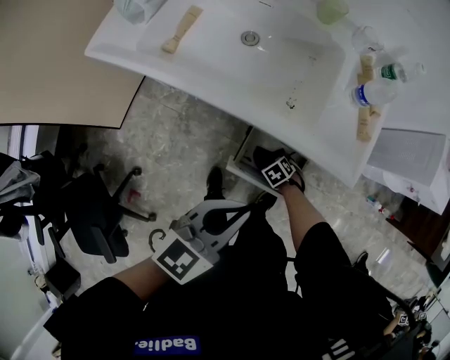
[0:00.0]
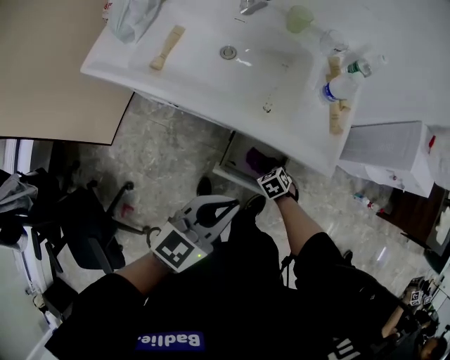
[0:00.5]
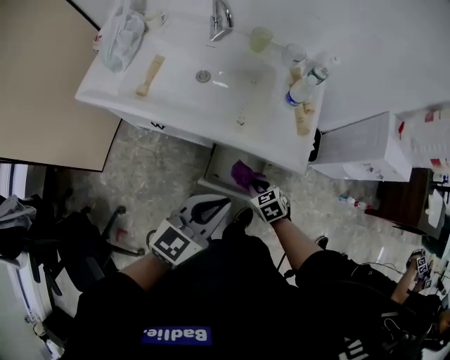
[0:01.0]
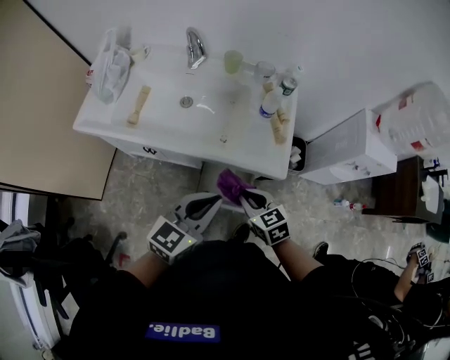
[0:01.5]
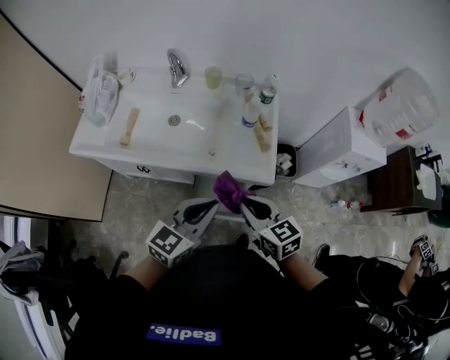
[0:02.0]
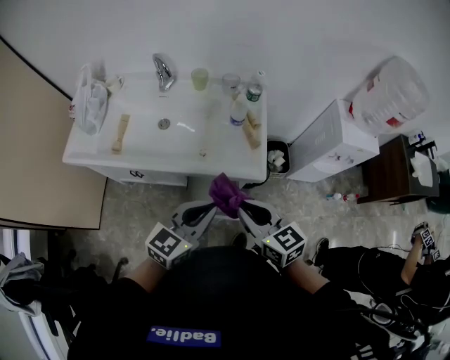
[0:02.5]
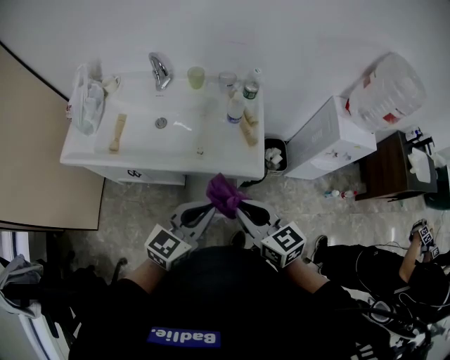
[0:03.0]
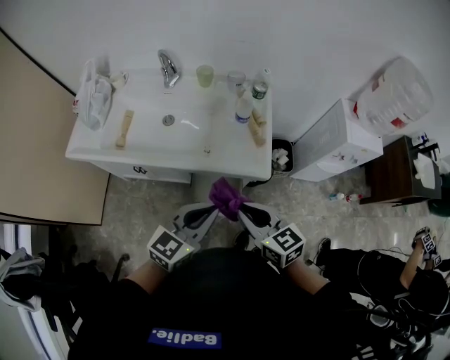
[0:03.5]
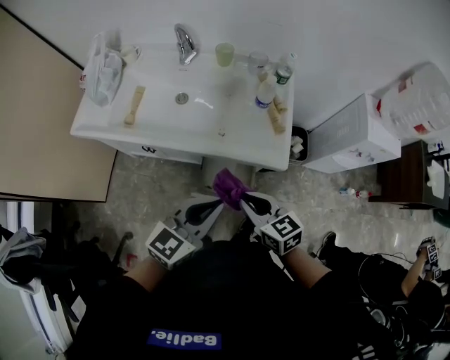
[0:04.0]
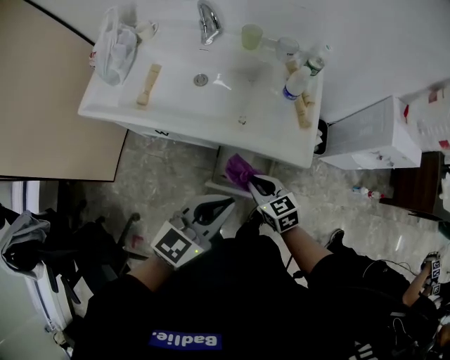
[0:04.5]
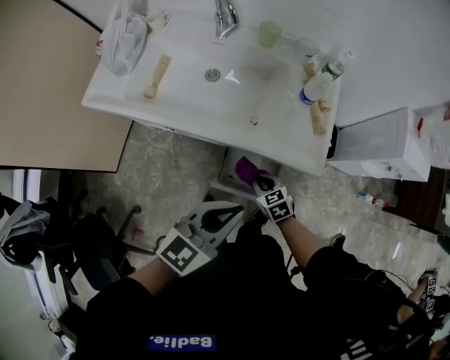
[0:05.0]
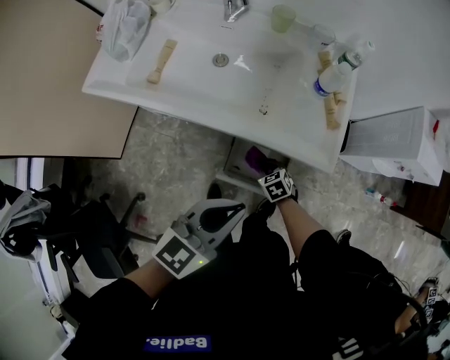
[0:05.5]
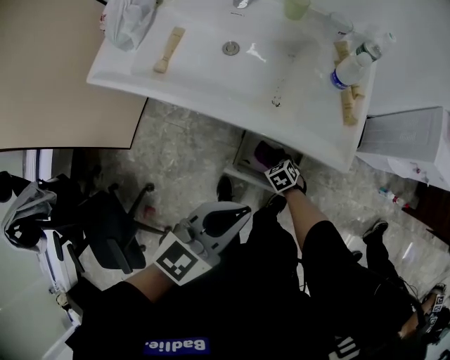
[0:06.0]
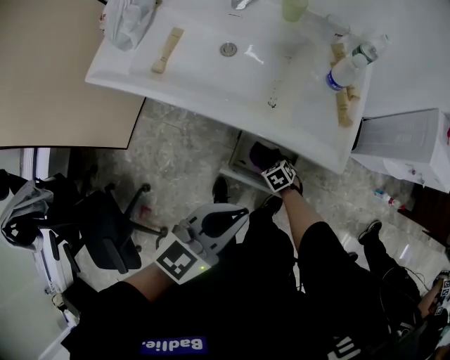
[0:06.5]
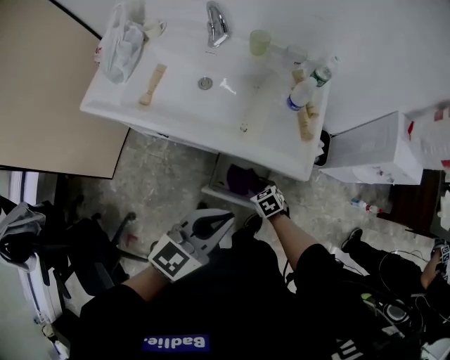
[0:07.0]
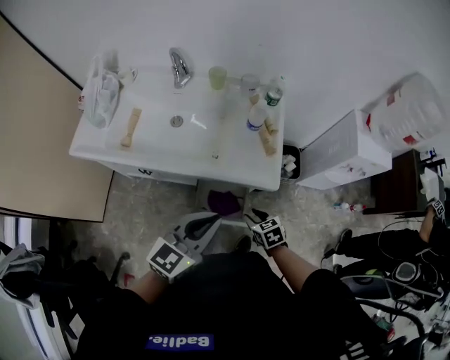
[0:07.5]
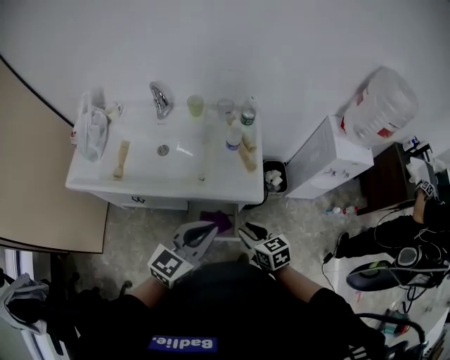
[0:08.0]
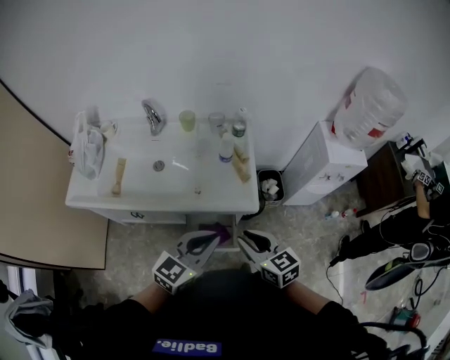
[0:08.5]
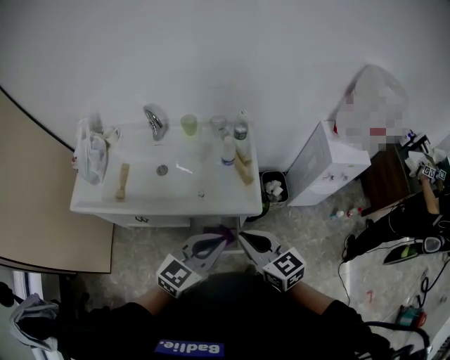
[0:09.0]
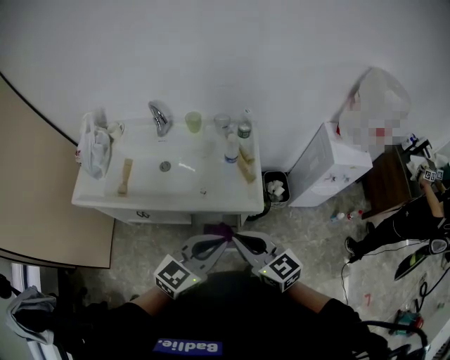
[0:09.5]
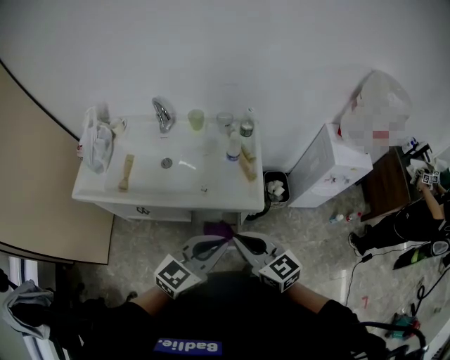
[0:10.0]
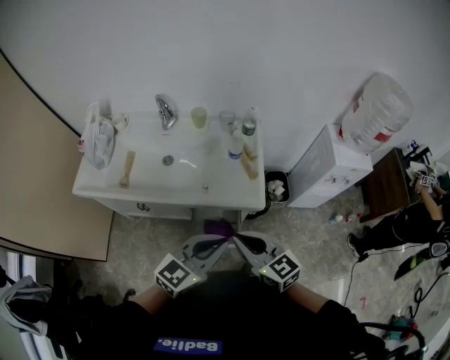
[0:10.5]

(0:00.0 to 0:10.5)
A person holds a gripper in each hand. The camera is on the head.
0:00.0 - 0:02.0: The left gripper shifts about 10 cm upward. Meanwhile the right gripper shifts approximately 50 cm upward, tips its fingers upward by approximately 60 degrees, and closes up.
0:02.0 - 0:04.0: The right gripper shifts approximately 5 cm downward.
0:04.0 - 0:06.5: The left gripper goes roughly 5 cm downward, while the right gripper is displaced downward by approximately 40 cm, and tilts its fingers roughly 40 degrees downward.
0:06.5 - 0:08.5: The right gripper is displaced upward by some 50 cm, and angles its fingers upward, by about 40 degrees; the left gripper goes roughly 15 cm upward and to the right.
0:08.5 - 0:10.5: The right gripper travels upward by about 5 cm, and closes.

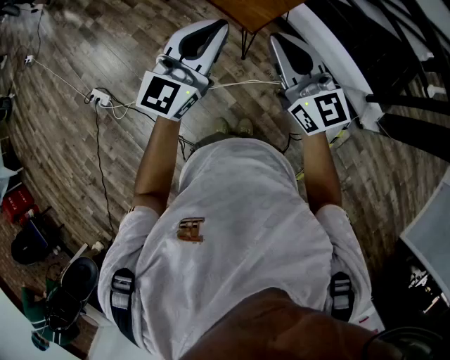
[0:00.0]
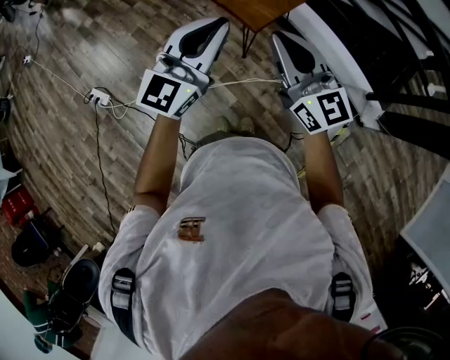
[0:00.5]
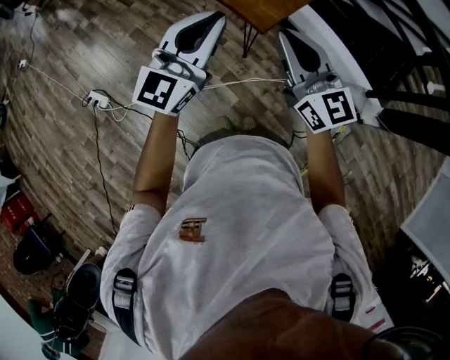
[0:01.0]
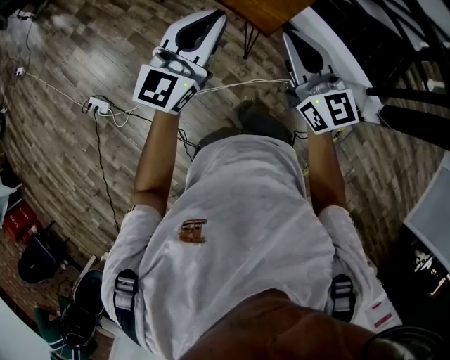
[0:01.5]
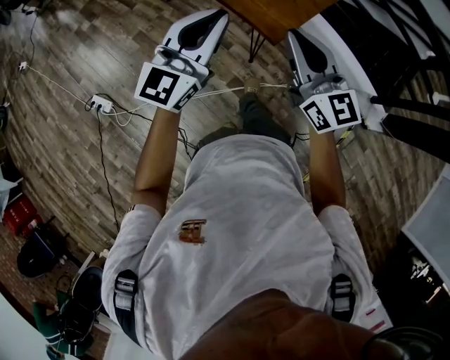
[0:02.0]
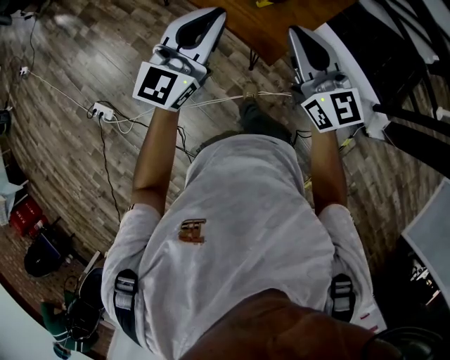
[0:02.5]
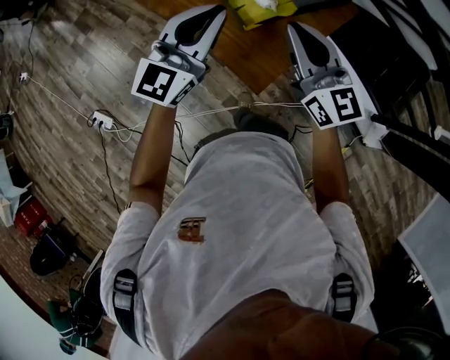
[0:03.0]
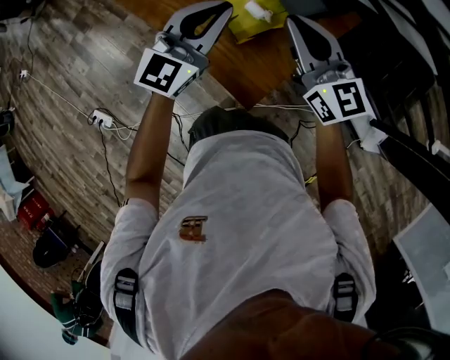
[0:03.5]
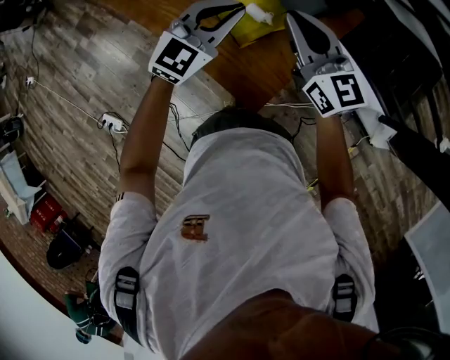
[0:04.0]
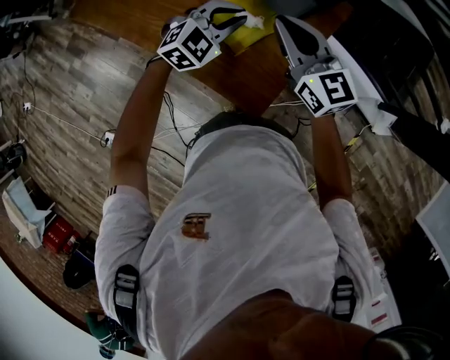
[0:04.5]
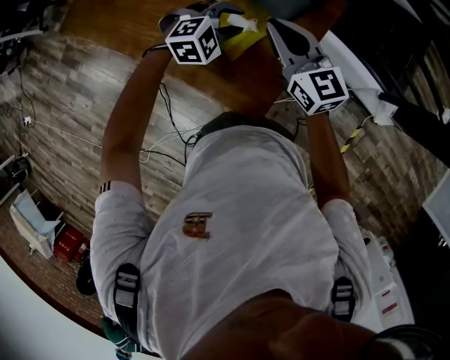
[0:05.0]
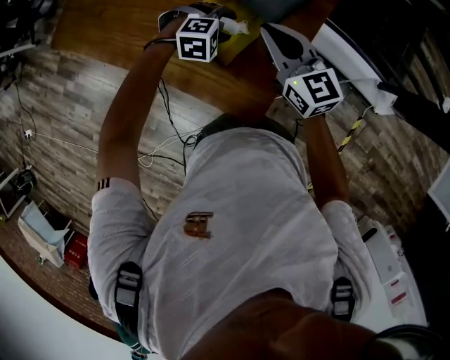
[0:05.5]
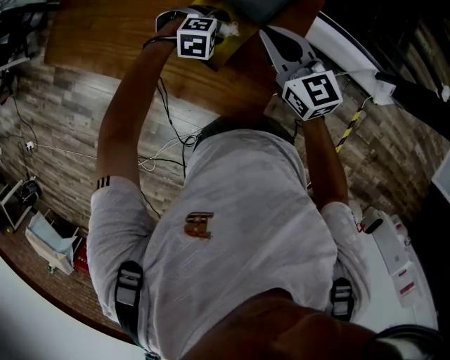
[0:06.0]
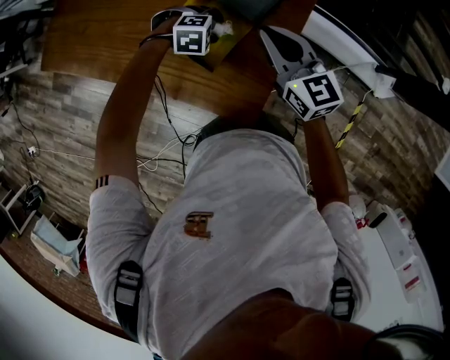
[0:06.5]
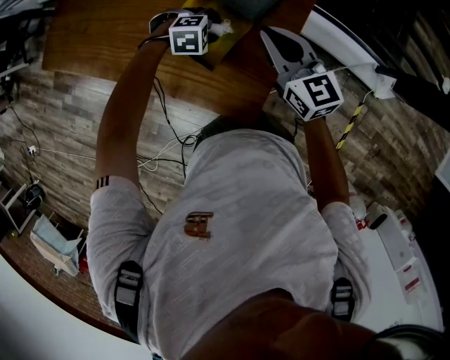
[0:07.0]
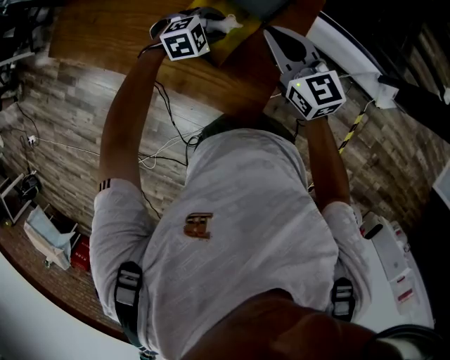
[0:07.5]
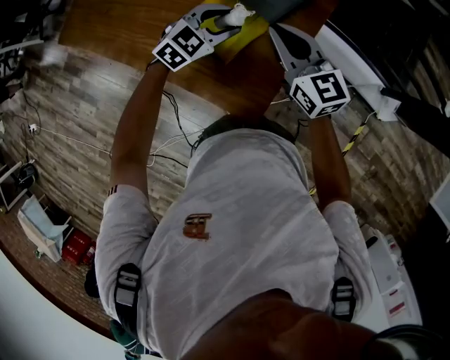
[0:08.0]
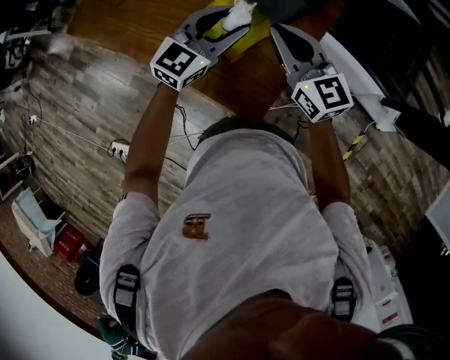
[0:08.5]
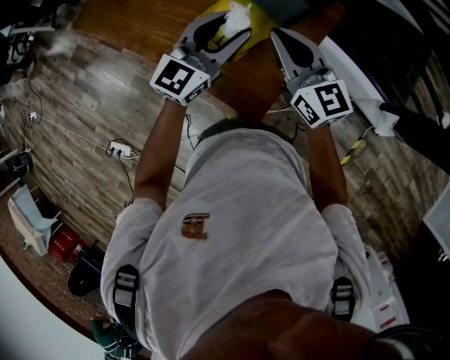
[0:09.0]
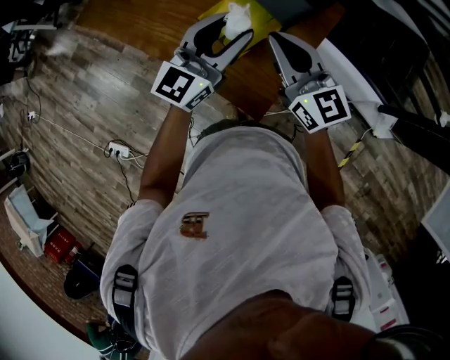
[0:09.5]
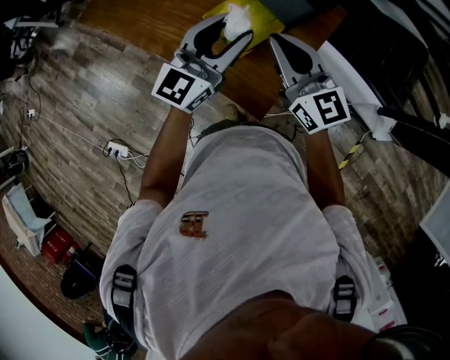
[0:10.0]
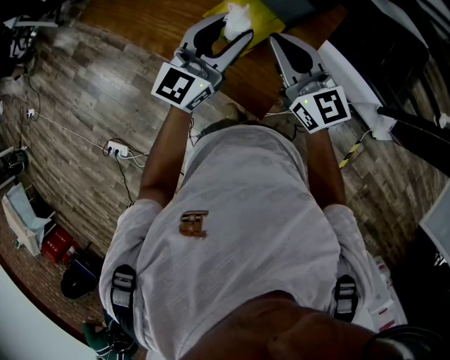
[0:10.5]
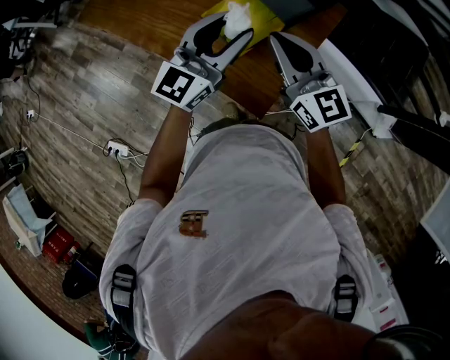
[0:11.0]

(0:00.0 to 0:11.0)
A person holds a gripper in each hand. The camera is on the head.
0:00.0 - 0:02.0: Both grippers travel together to the left and forward, roughly 15 cm.
0:02.0 - 0:03.5: The pair of grippers is taken forward, about 40 cm.
0:03.5 - 0:05.5: The right gripper moves some 15 cm. The left gripper heads downward, covering roughly 25 cm, points its fingers approximately 70 degrees further downward, and opens up.
0:05.5 - 0:07.5: There are only small adjustments of the grippers.
0:07.5 - 0:09.0: The right gripper shifts some 10 cm upward and backward; the left gripper moves upward, roughly 25 cm, and tips its fingers upward by roughly 60 degrees.
0:09.0 - 0:11.0: The left gripper ends up approximately 5 cm from where it was, while the right gripper goes approximately 5 cm backward.

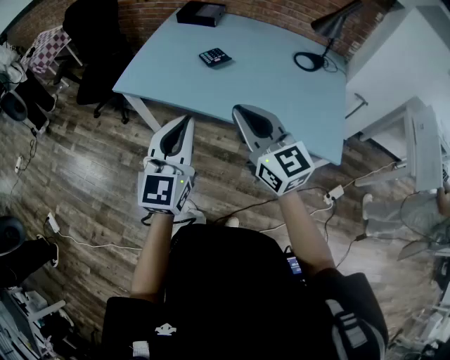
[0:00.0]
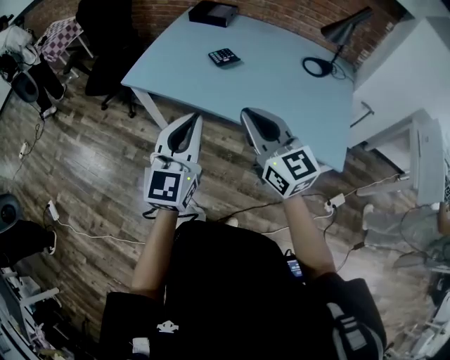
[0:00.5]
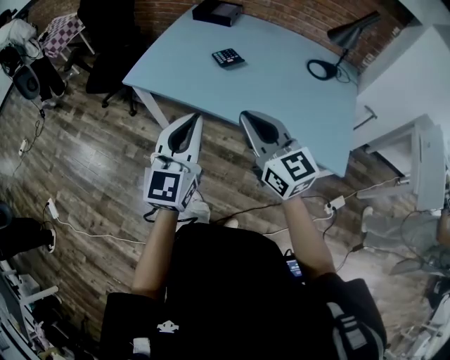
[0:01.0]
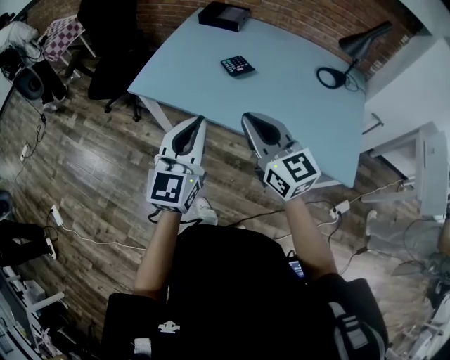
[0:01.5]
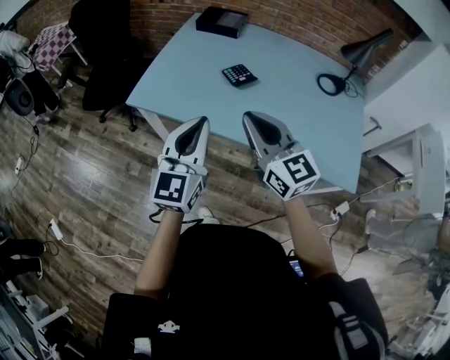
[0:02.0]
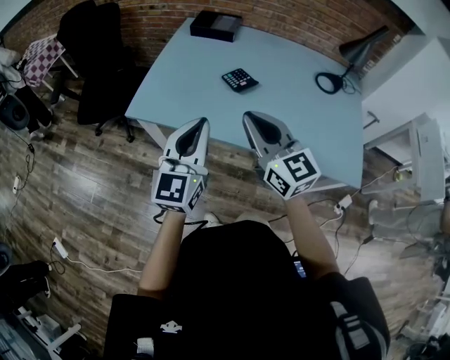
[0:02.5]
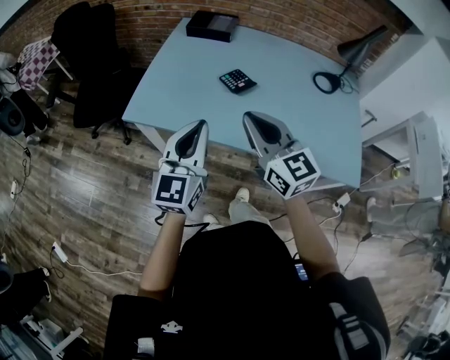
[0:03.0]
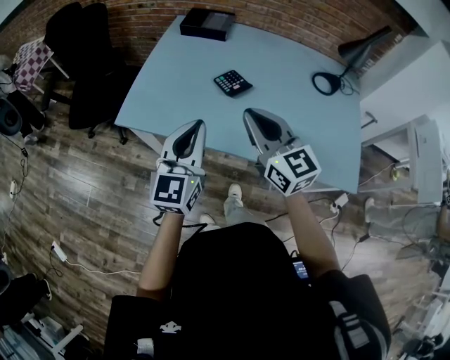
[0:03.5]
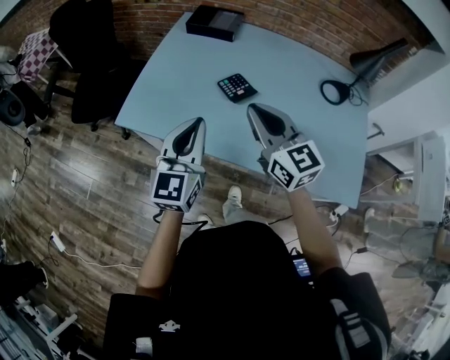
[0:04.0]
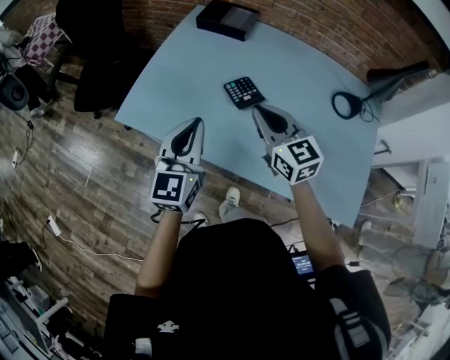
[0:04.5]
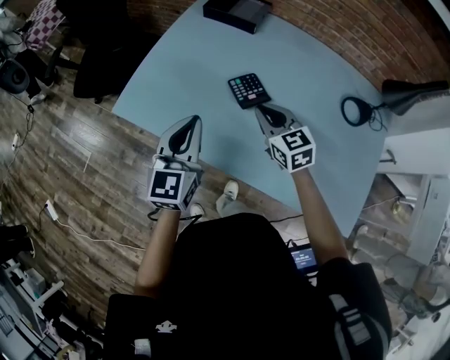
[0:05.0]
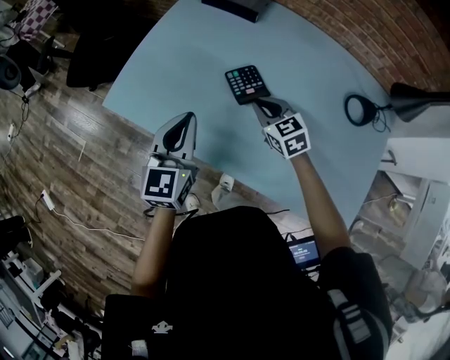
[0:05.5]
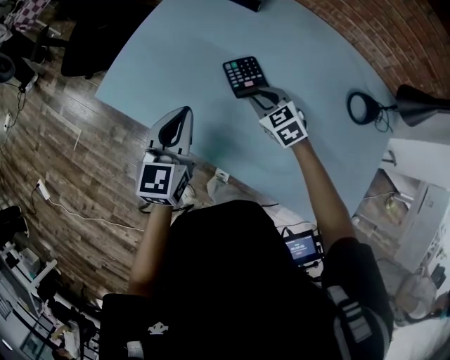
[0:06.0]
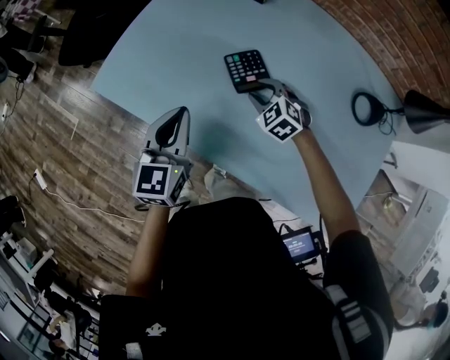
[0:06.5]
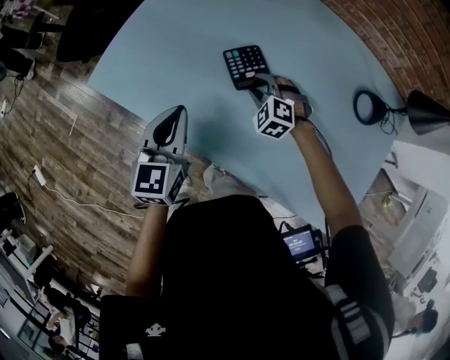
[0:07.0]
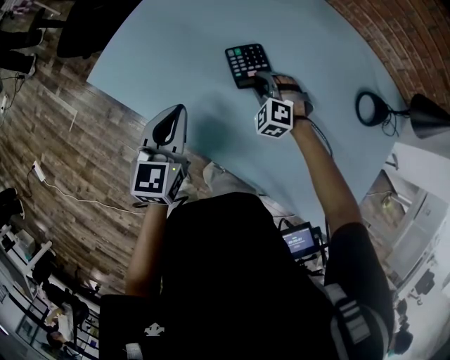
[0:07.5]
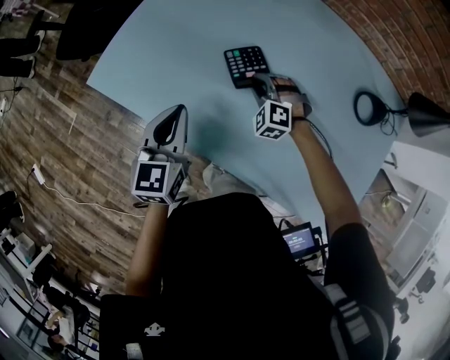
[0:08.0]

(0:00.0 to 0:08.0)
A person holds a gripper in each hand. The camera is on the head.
0:00.0 - 0:02.0: Both grippers move forward and to the left, roughly 15 cm.
0:02.0 - 0:04.0: The grippers both shift forward by approximately 15 cm.
0:04.0 - 0:06.0: The right gripper shifts approximately 30 cm downward and forward, and points its fingers roughly 40 degrees further downward, while the left gripper is displaced downward and forward by some 15 cm.
0:06.0 - 0:08.0: The right gripper moves downward, roughly 5 cm, and twists some 40 degrees counterclockwise, seen from behind.
